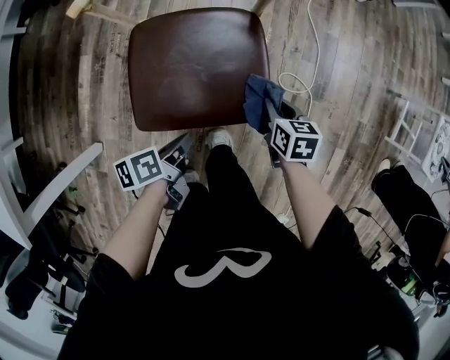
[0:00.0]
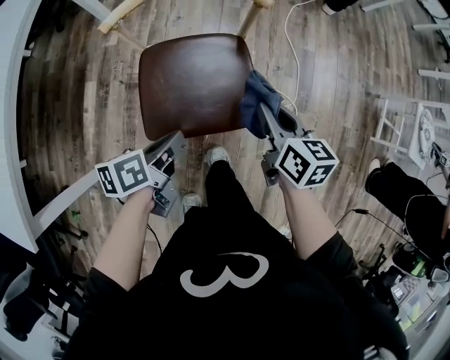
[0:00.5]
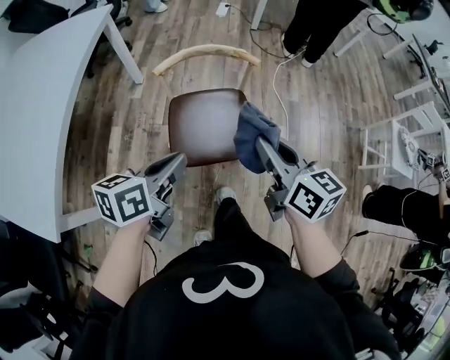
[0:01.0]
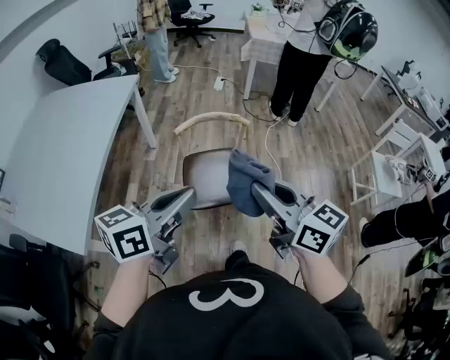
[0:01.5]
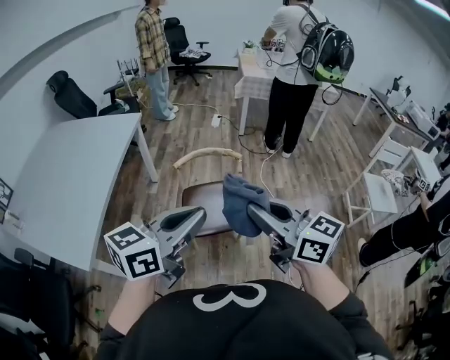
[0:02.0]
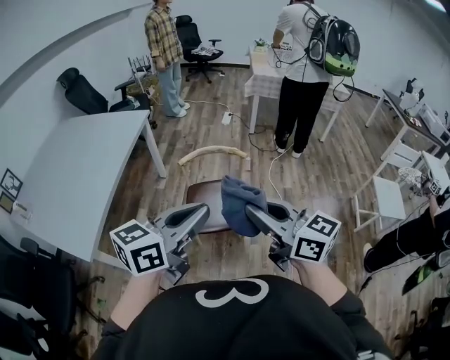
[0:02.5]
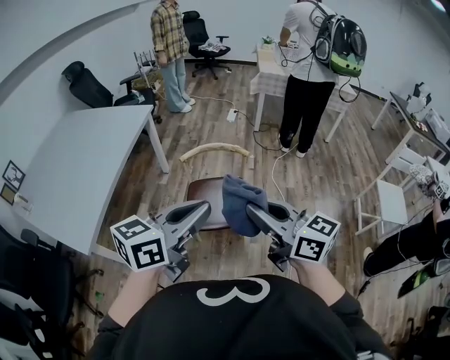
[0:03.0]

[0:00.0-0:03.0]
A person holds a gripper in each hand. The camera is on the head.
0:00.0 to 0:01.5: The right gripper shifts roughly 60 cm upward, and angles its fingers upward, by roughly 50 degrees.
0:01.5 to 0:03.0: The right gripper ends up roughly 5 cm from where it was.

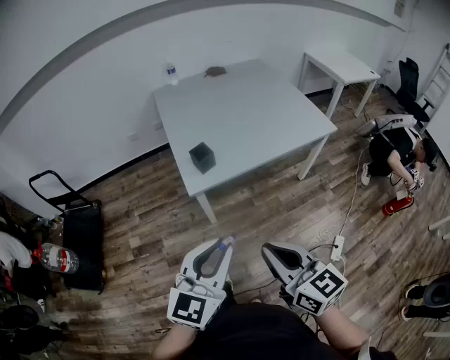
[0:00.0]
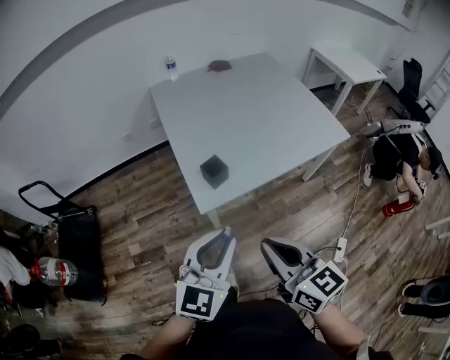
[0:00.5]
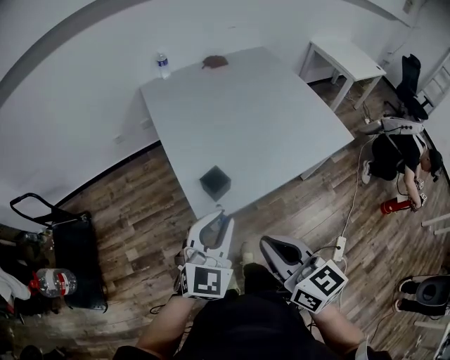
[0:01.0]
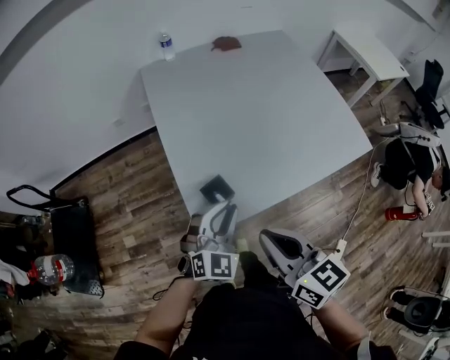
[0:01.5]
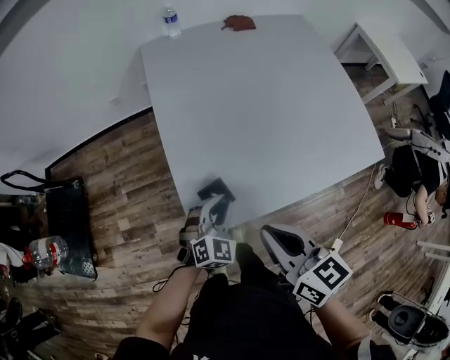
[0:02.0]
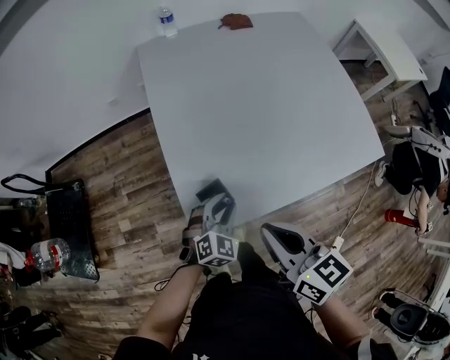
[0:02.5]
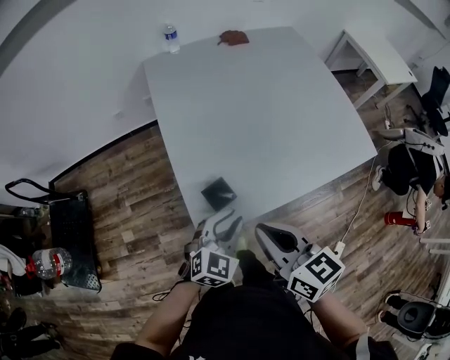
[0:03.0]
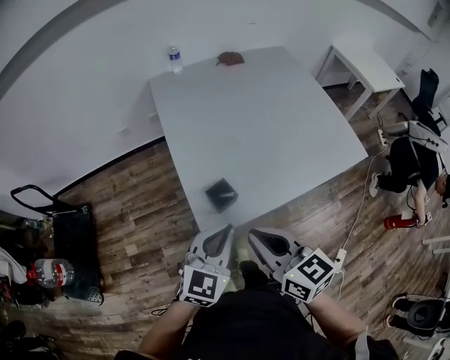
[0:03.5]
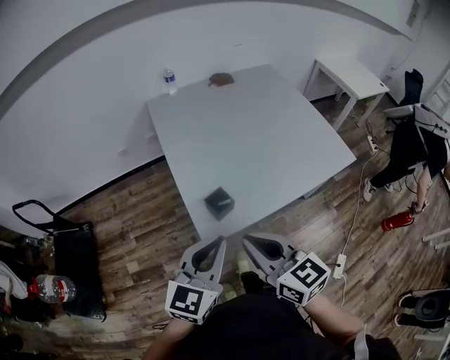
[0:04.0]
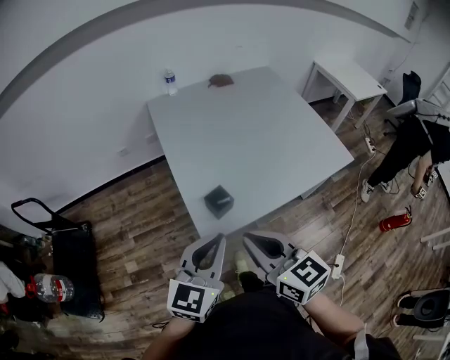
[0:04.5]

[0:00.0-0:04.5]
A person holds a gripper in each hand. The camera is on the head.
0:00.0 to 0:02.0: The right gripper goes about 35 cm forward, while the left gripper moves forward and downward, approximately 50 cm, and rotates about 40 degrees.
0:02.0 to 0:04.5: The right gripper shifts approximately 15 cm backward, to the left and upward; the left gripper travels upward and backward by roughly 25 cm, and rotates roughly 40 degrees.

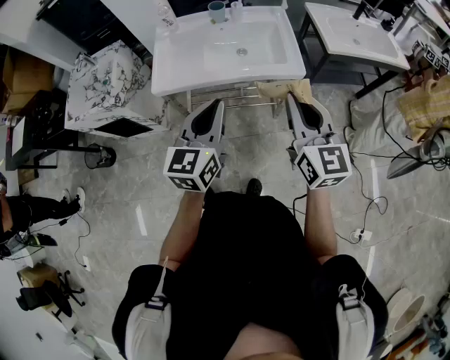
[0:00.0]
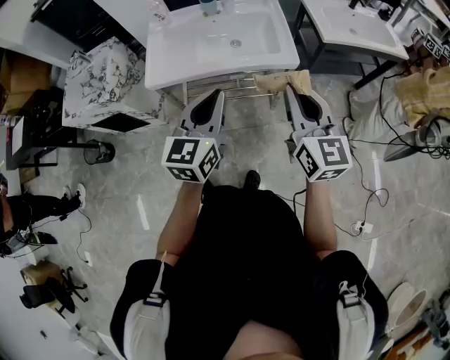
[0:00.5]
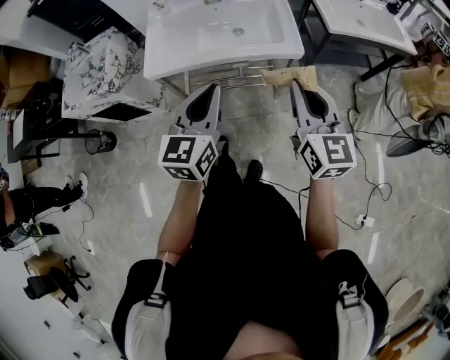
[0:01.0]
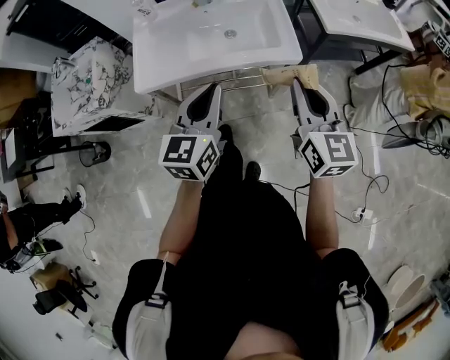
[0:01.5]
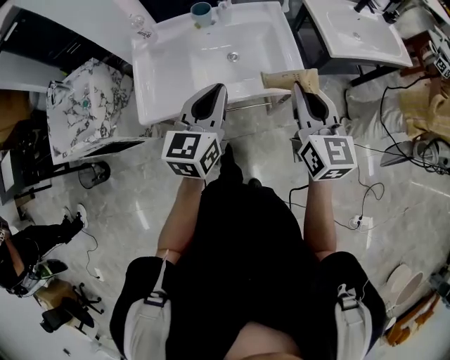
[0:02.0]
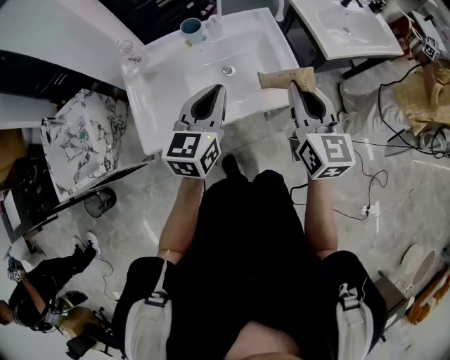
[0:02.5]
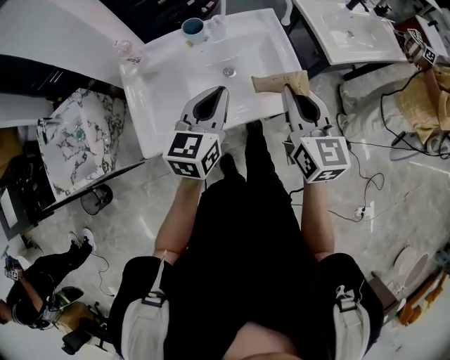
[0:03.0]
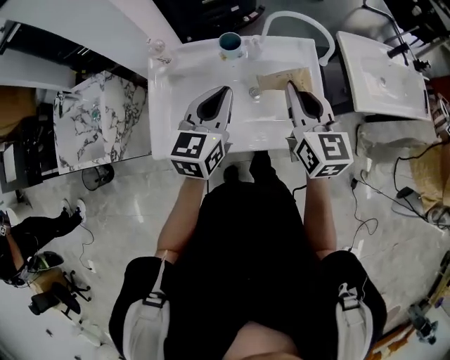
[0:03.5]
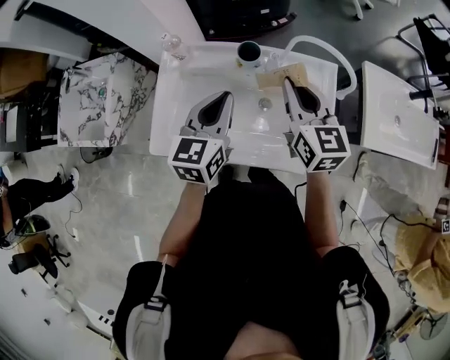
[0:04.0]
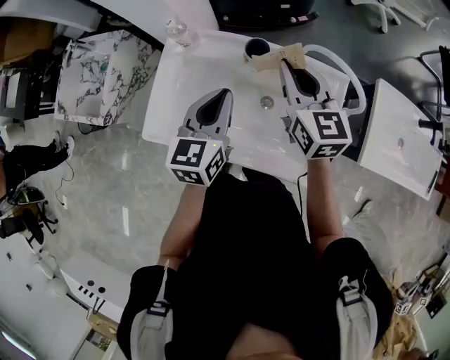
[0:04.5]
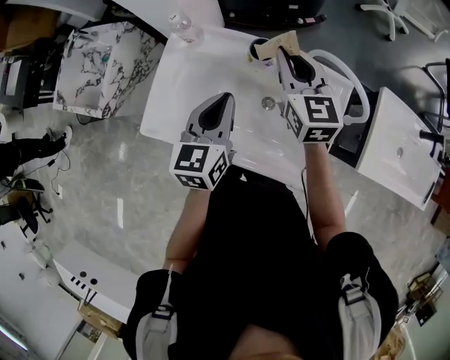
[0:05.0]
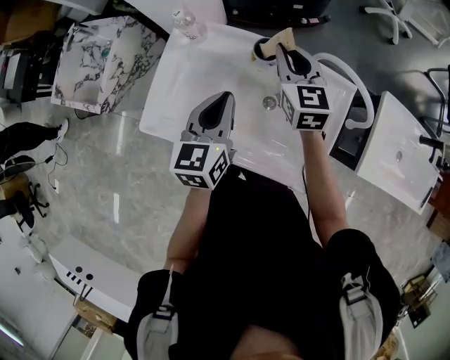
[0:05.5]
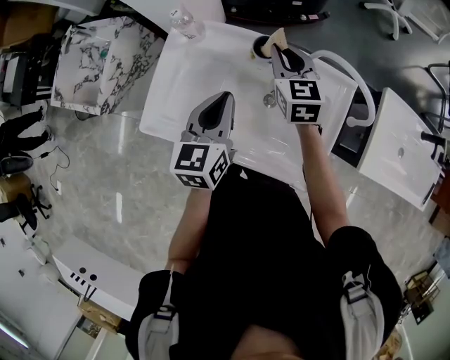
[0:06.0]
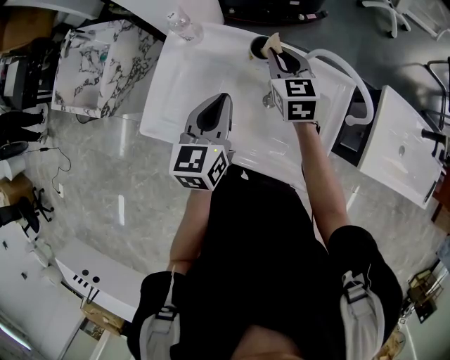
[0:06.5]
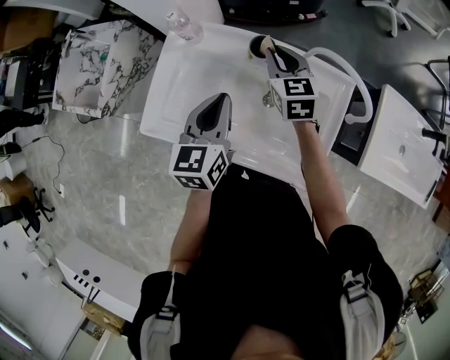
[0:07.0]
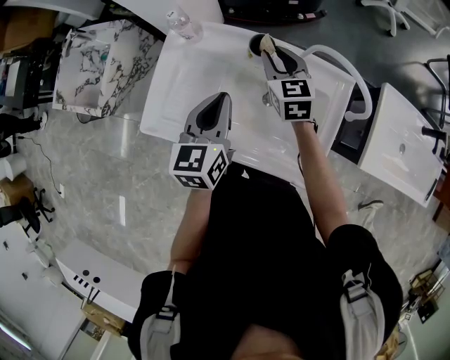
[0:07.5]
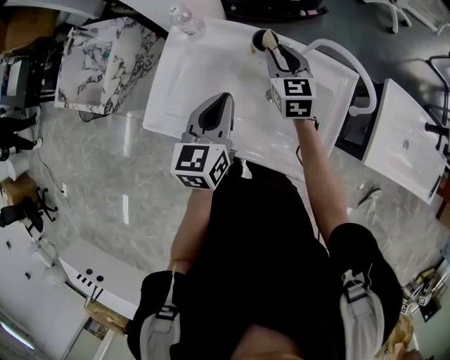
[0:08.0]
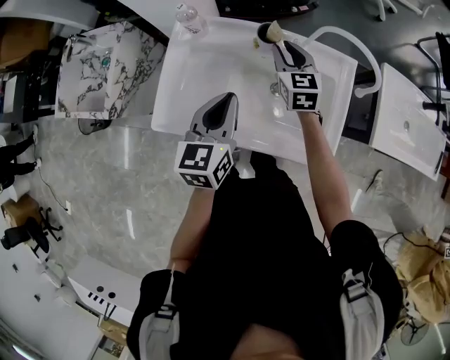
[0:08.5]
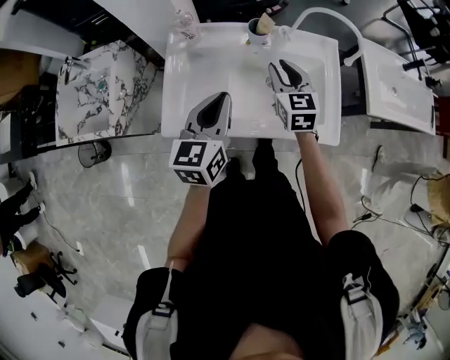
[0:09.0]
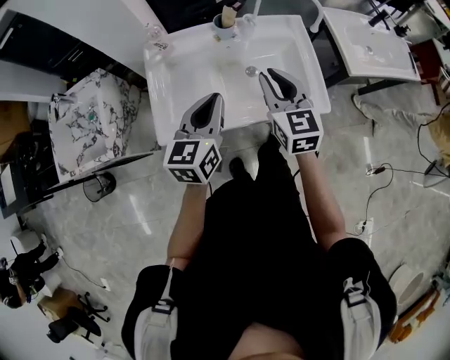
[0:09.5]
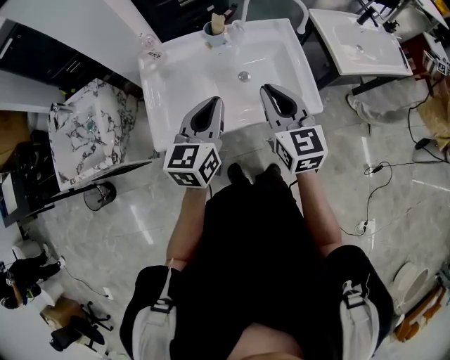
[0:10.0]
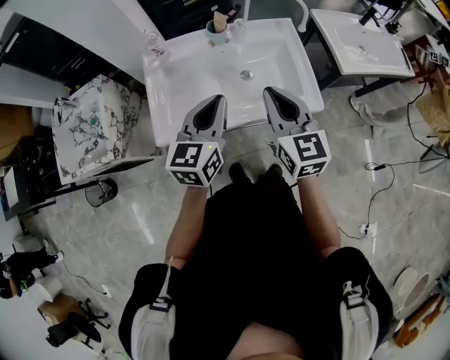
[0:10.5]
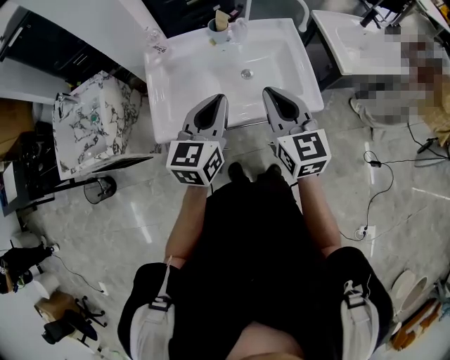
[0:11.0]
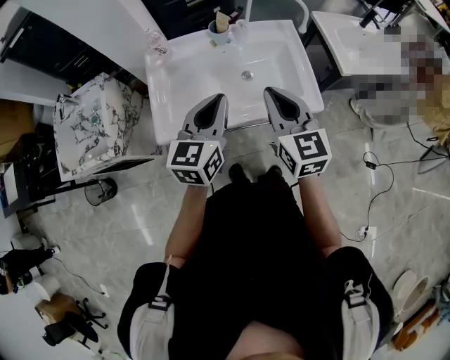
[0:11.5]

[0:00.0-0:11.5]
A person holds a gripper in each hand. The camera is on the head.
0:00.0 to 0:02.0: The two grippers go approximately 20 cm forward.
0:02.0 to 0:04.0: The left gripper ends up approximately 25 cm from where it was. The right gripper shifts by roughly 35 cm, and changes its angle by approximately 20 degrees.
0:04.0 to 0:06.0: The right gripper shifts roughly 15 cm forward and downward.
0:06.0 to 0:07.5: There are only small adjustments of the grippers.
0:07.5 to 0:09.5: The left gripper ends up about 15 cm from where it was, and rotates approximately 30 degrees; the right gripper moves roughly 30 cm, and swivels about 30 degrees.
0:09.5 to 0:11.5: The left gripper shifts by approximately 5 cm. Meanwhile the right gripper goes approximately 10 cm backward.

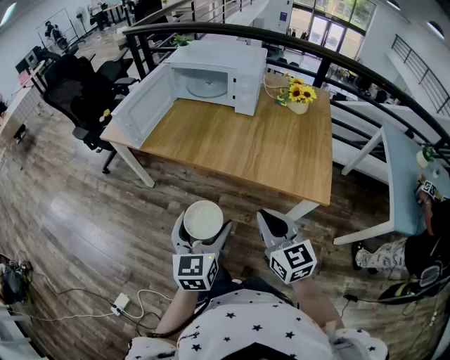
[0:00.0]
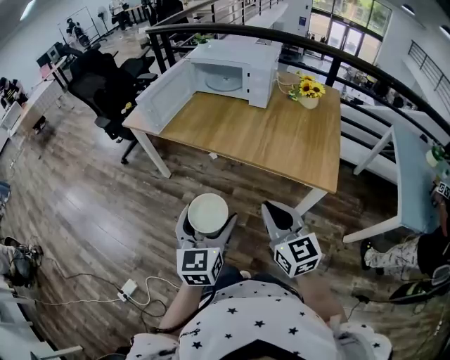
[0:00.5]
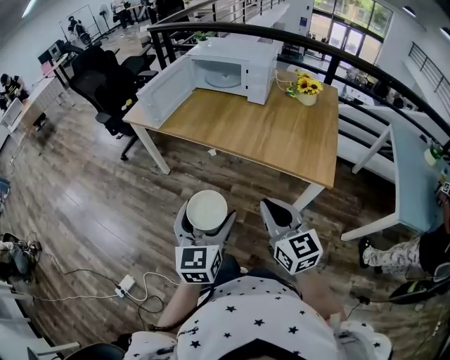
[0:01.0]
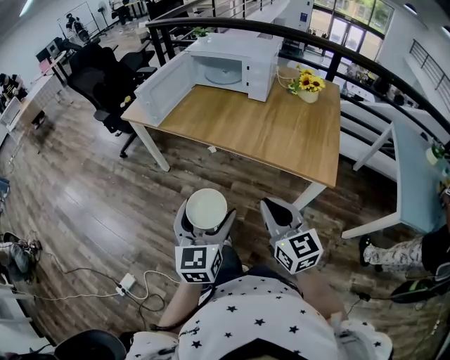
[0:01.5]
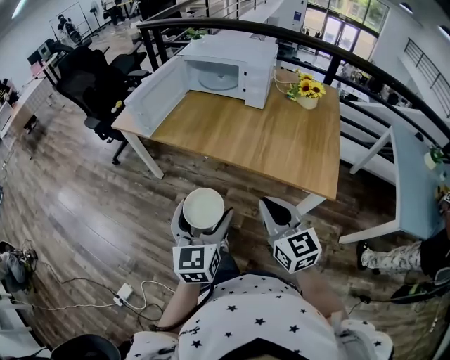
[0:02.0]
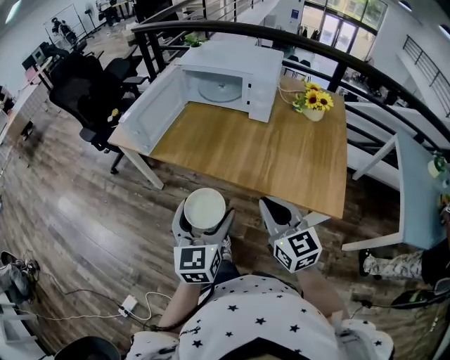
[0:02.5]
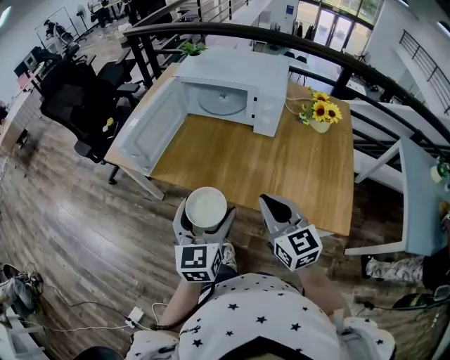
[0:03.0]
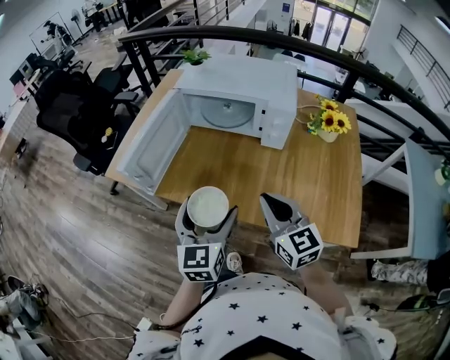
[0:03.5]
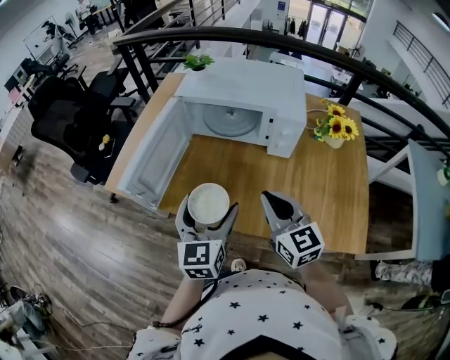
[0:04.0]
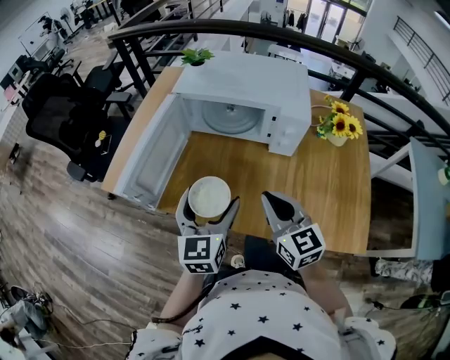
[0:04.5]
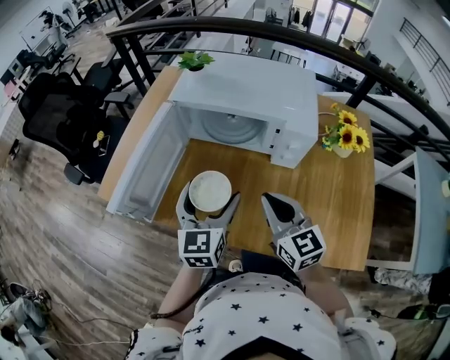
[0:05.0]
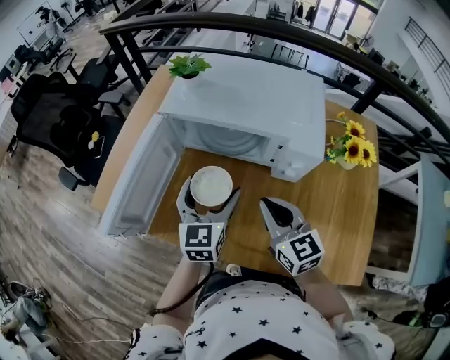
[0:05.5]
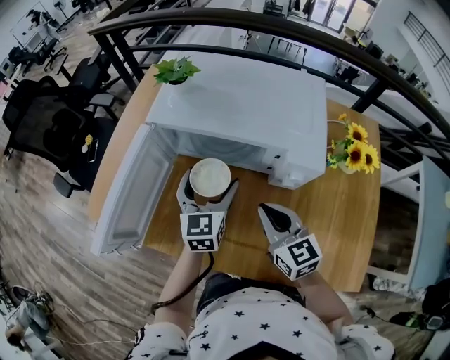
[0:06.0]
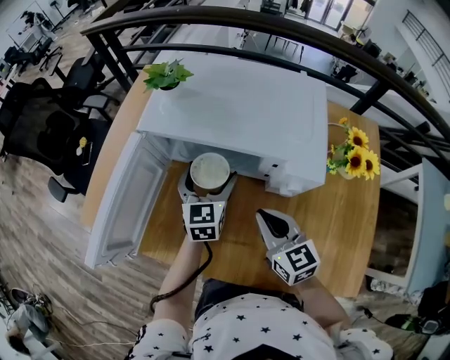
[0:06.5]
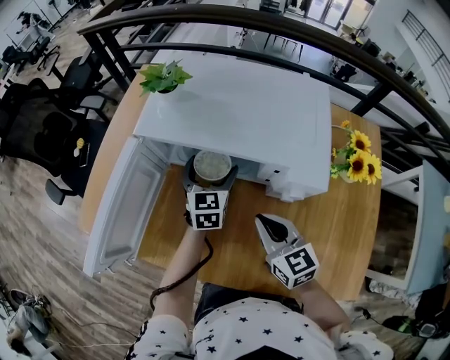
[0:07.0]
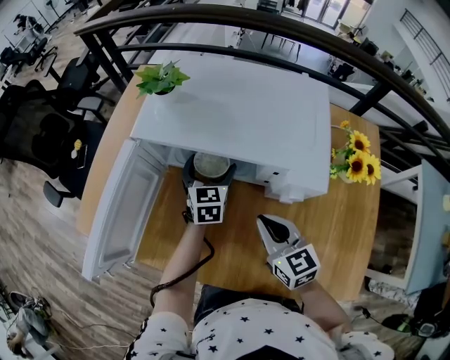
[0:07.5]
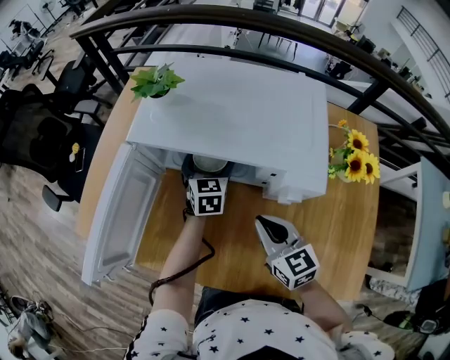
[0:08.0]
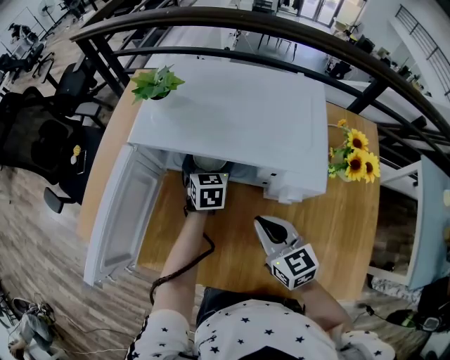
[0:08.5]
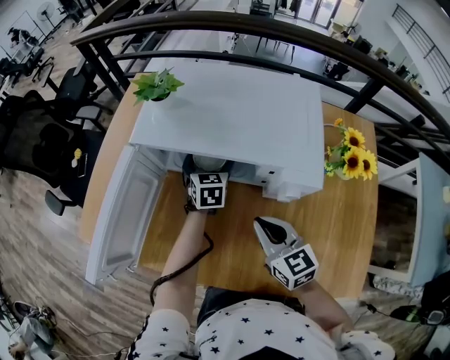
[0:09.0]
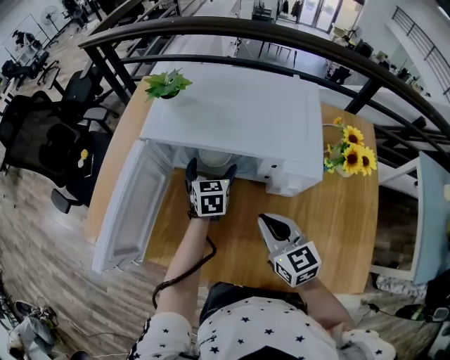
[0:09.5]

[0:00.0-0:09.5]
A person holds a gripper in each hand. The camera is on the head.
0:00.0 to 0:02.0: The right gripper reaches about 10 cm backward, then returns. Meanwhile the left gripper travels backward and back again, approximately 10 cm each way.
0:02.0 to 0:04.0: The two grippers go some 35 cm forward.
0:04.0 to 0:05.5: Both grippers travel together forward, roughly 15 cm.
0:05.5 to 0:07.5: The left gripper goes about 20 cm forward and downward; the right gripper moves downward, approximately 5 cm.
0:07.5 to 0:09.5: The grippers stay close to where they were, moving slightly.
